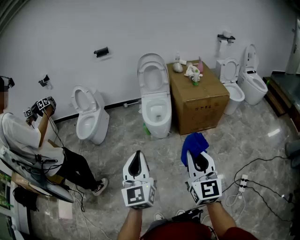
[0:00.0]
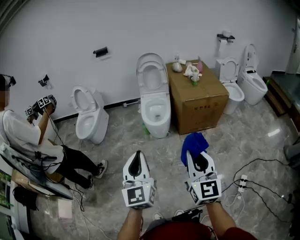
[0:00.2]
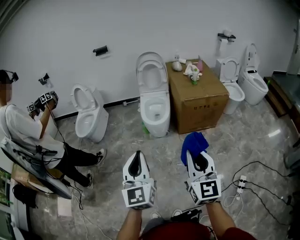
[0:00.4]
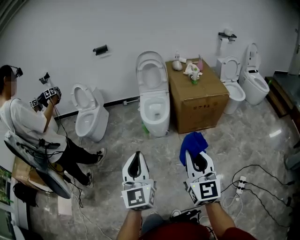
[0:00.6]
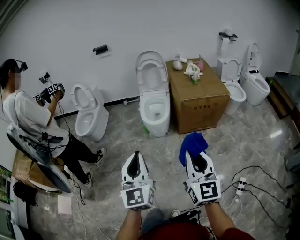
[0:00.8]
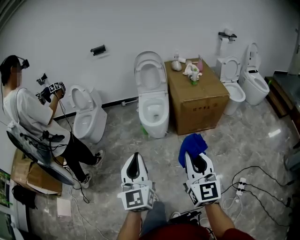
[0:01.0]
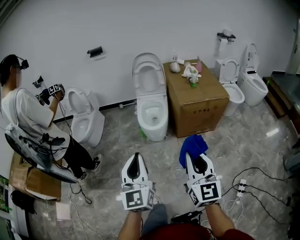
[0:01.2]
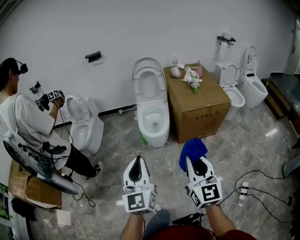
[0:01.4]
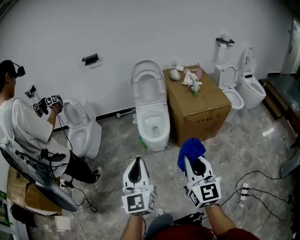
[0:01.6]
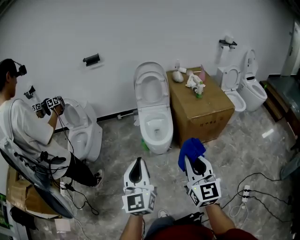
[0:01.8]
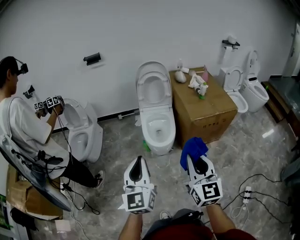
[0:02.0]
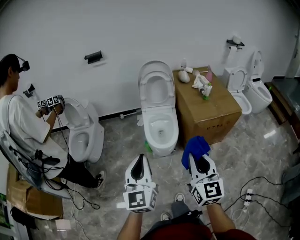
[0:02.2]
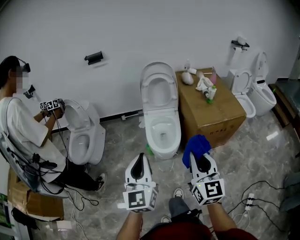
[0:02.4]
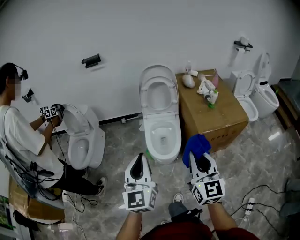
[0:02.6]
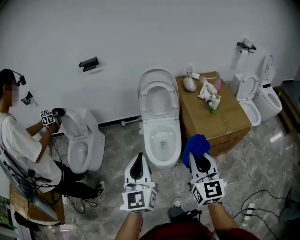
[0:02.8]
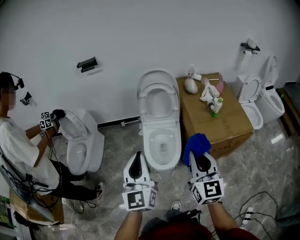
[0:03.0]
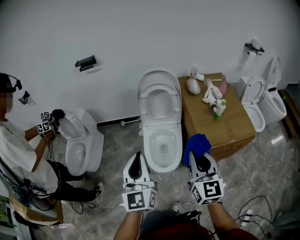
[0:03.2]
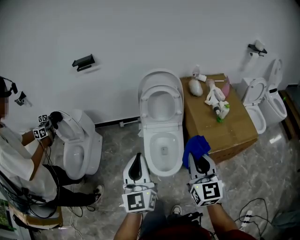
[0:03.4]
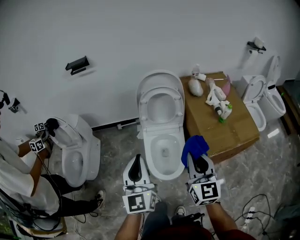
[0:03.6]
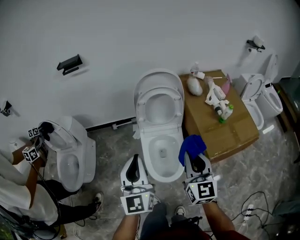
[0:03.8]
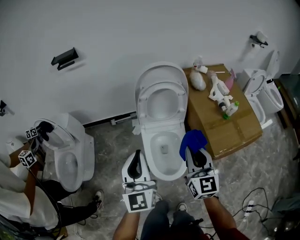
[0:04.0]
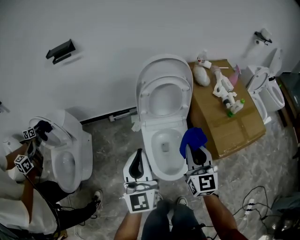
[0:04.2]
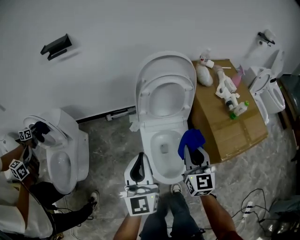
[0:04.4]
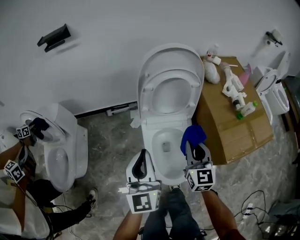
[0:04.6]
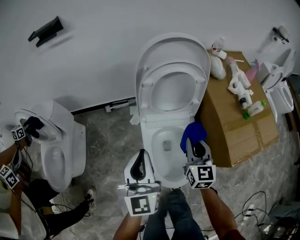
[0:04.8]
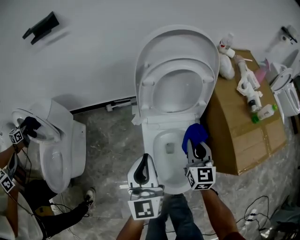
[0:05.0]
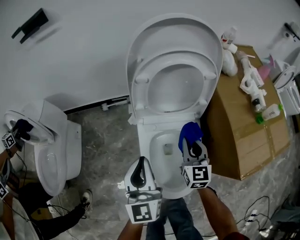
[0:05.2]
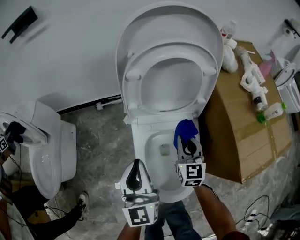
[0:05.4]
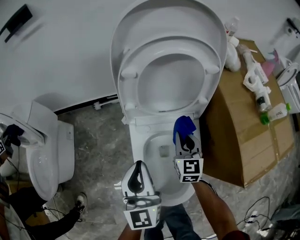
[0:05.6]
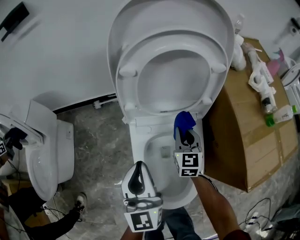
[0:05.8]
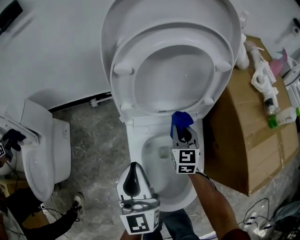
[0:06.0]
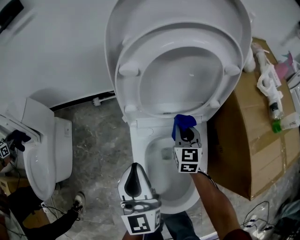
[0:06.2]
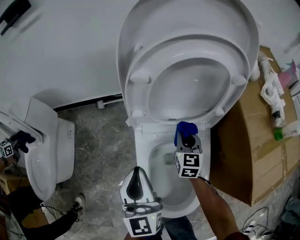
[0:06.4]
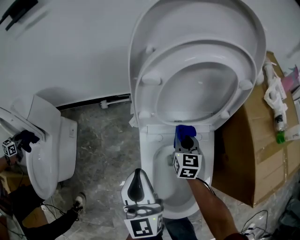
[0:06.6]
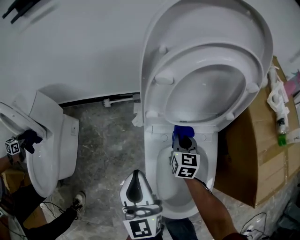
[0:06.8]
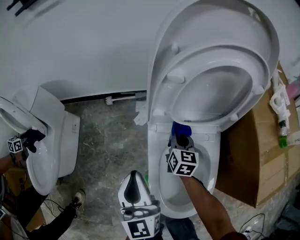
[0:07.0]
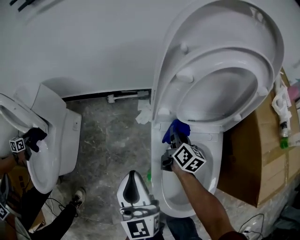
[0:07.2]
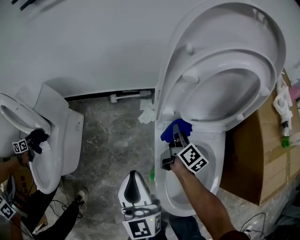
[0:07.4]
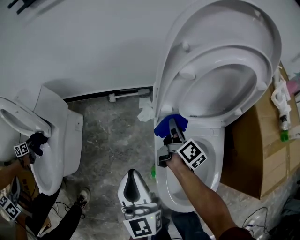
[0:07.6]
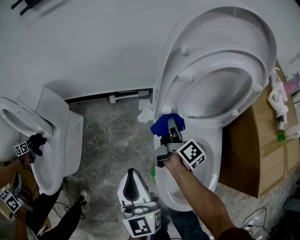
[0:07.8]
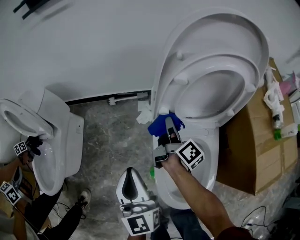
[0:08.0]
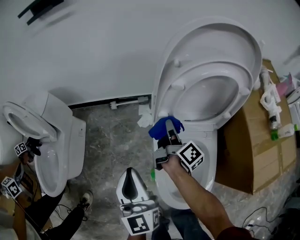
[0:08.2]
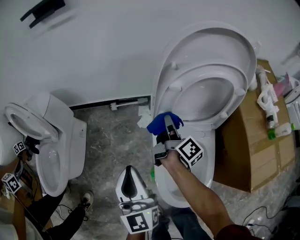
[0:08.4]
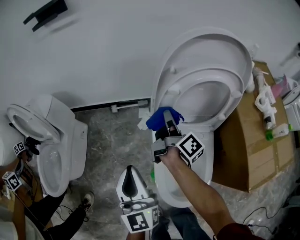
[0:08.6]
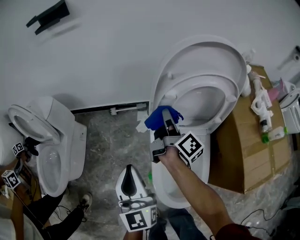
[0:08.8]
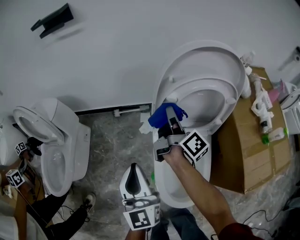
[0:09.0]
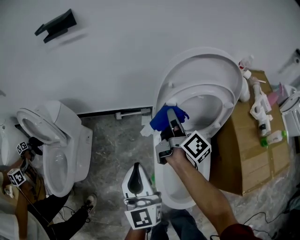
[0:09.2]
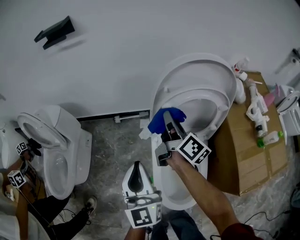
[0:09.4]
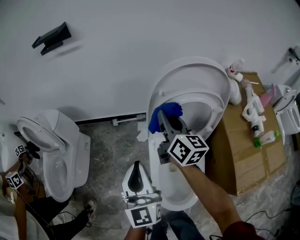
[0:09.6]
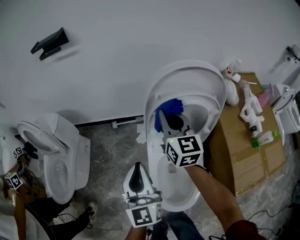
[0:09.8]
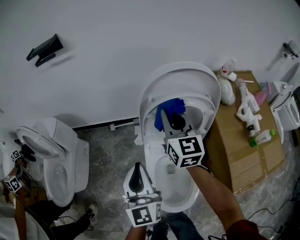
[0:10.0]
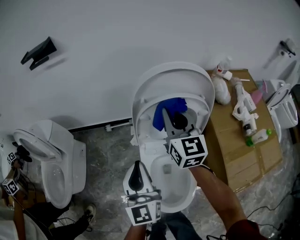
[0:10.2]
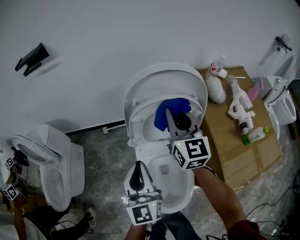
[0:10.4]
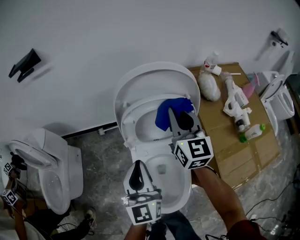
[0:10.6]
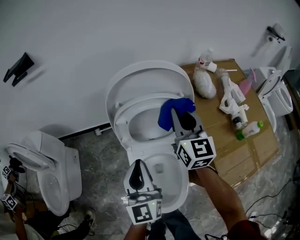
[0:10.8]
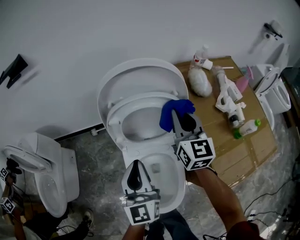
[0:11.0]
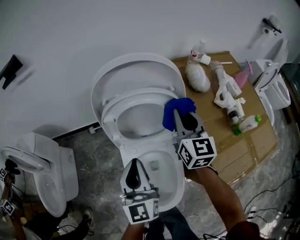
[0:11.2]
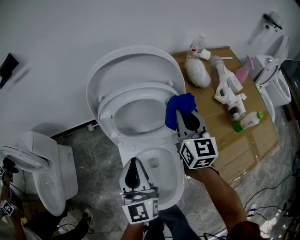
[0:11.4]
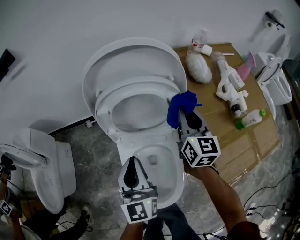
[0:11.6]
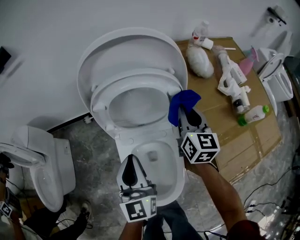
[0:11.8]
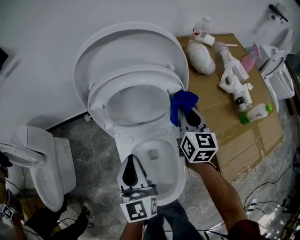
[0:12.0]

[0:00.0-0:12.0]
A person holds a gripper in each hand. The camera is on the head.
0:00.0 to 0:01.6: The grippers both shift forward by roughly 20 cm.
0:01.6 to 0:03.0: The two grippers go roughly 40 cm forward.
0:03.0 to 0:04.4: Both grippers move forward and downward, approximately 40 cm.
0:04.4 to 0:06.0: The two grippers go approximately 40 cm downward and forward.
0:06.0 to 0:07.6: The right gripper travels to the left and forward by roughly 15 cm, and rotates around the line of its fingers by roughly 70 degrees, clockwise from behind. Meanwhile the left gripper goes about 15 cm to the left.
0:07.6 to 0:09.0: The right gripper is displaced upward by roughly 25 cm. Meanwhile the left gripper shifts approximately 15 cm upward.
0:09.0 to 0:10.4: The left gripper shifts some 15 cm to the right. The right gripper shifts about 20 cm upward and to the right, and rotates around the line of its fingers by approximately 70 degrees, counterclockwise from behind.
0:10.4 to 0:12.0: The left gripper heads downward and to the right, covering roughly 15 cm. The right gripper goes about 25 cm downward and to the right, and turns by some 20 degrees.

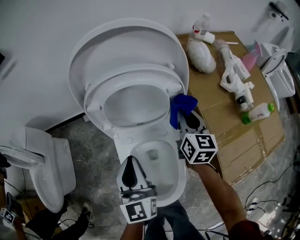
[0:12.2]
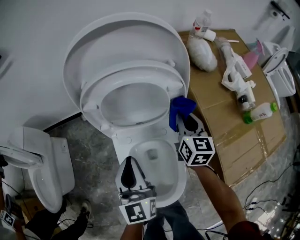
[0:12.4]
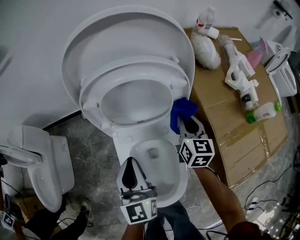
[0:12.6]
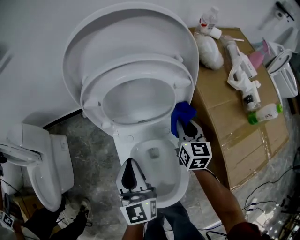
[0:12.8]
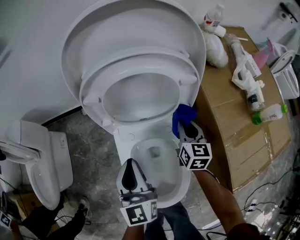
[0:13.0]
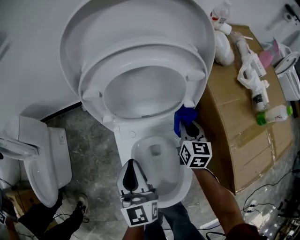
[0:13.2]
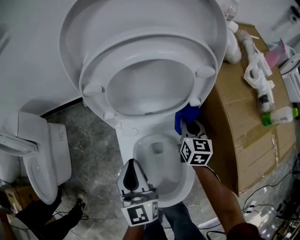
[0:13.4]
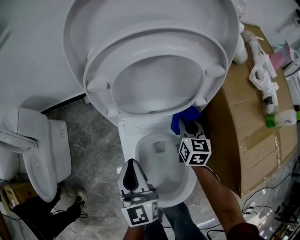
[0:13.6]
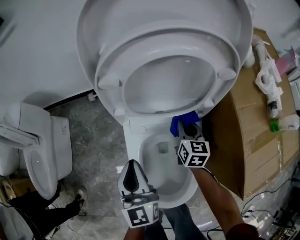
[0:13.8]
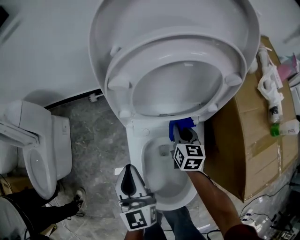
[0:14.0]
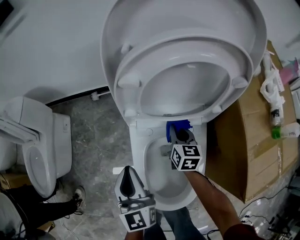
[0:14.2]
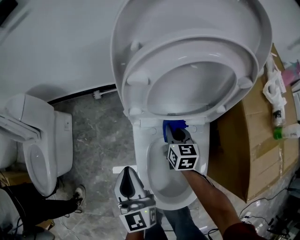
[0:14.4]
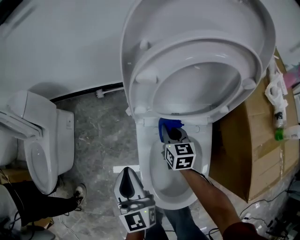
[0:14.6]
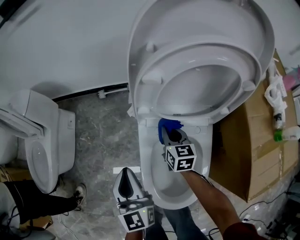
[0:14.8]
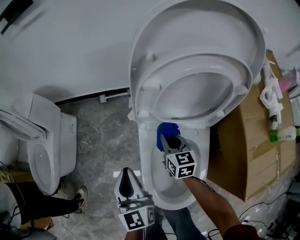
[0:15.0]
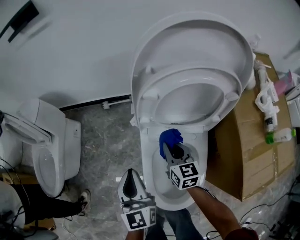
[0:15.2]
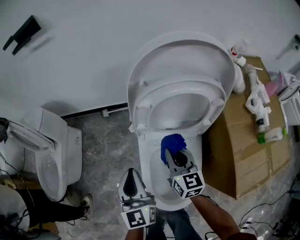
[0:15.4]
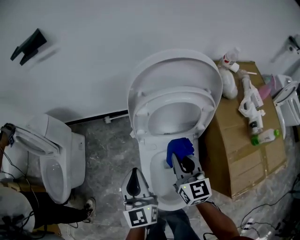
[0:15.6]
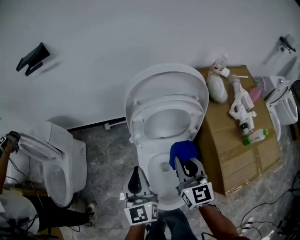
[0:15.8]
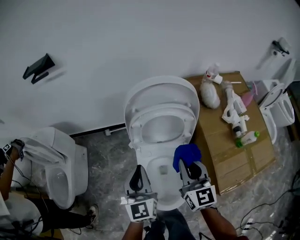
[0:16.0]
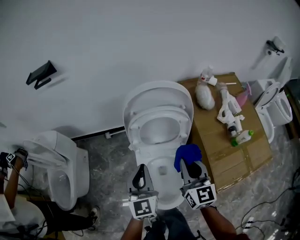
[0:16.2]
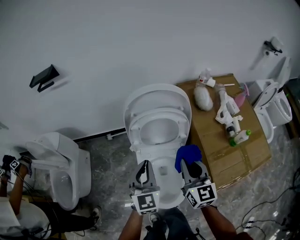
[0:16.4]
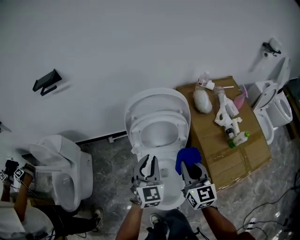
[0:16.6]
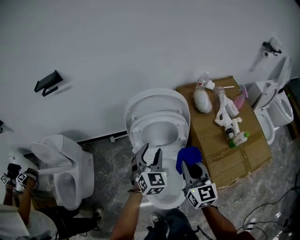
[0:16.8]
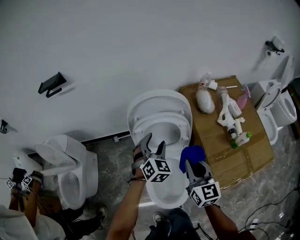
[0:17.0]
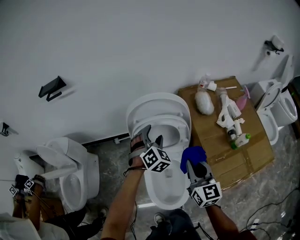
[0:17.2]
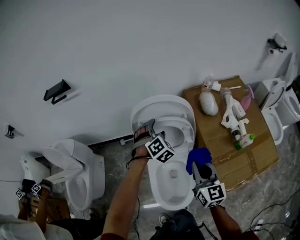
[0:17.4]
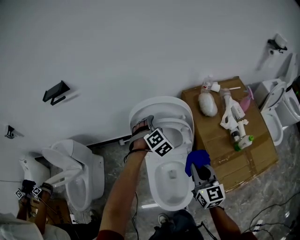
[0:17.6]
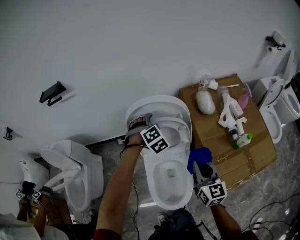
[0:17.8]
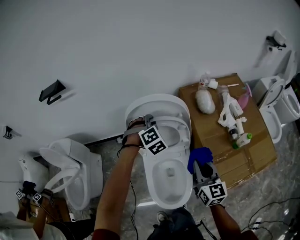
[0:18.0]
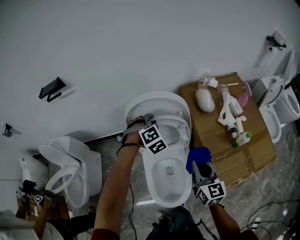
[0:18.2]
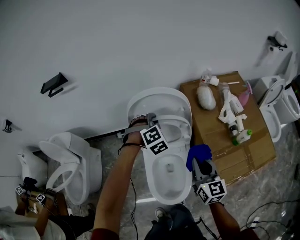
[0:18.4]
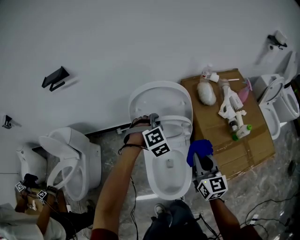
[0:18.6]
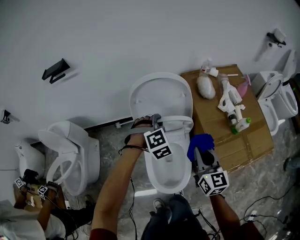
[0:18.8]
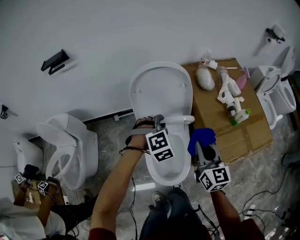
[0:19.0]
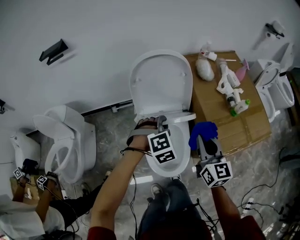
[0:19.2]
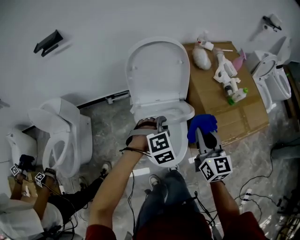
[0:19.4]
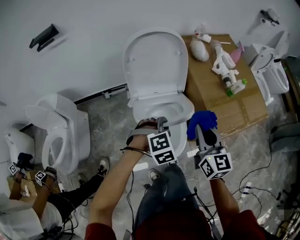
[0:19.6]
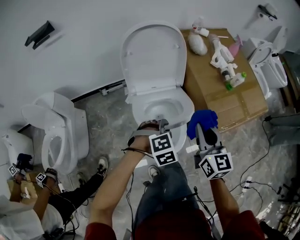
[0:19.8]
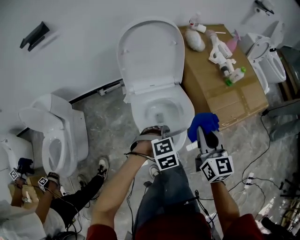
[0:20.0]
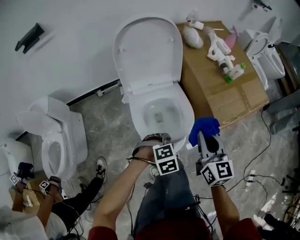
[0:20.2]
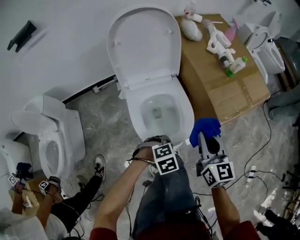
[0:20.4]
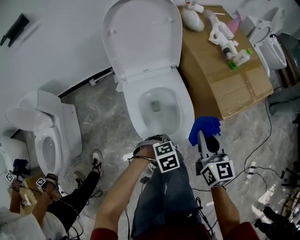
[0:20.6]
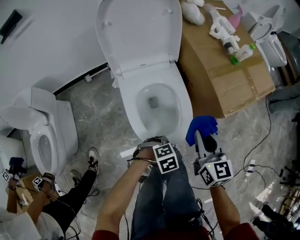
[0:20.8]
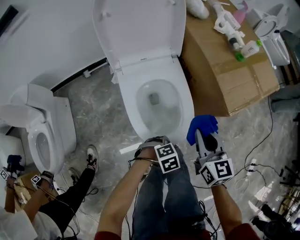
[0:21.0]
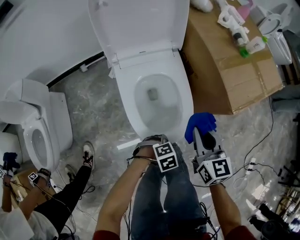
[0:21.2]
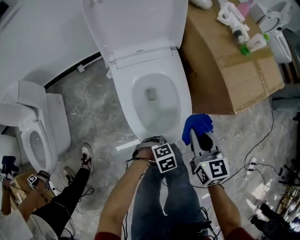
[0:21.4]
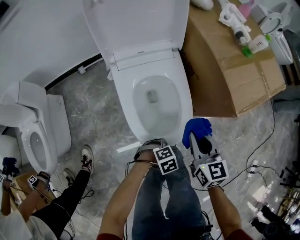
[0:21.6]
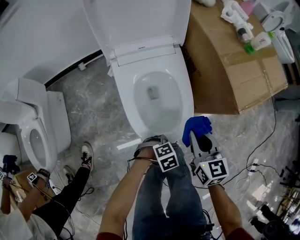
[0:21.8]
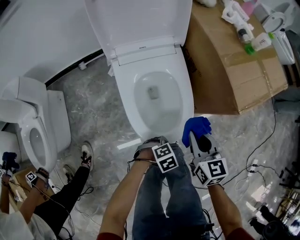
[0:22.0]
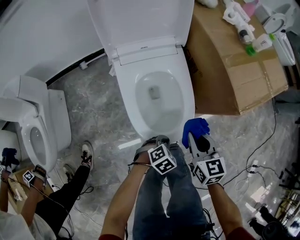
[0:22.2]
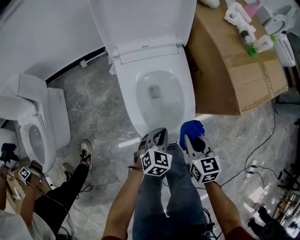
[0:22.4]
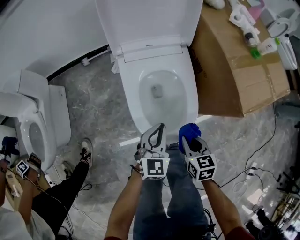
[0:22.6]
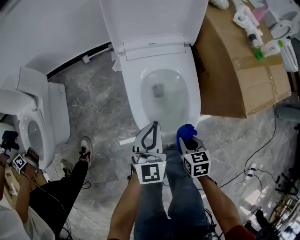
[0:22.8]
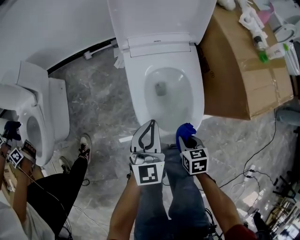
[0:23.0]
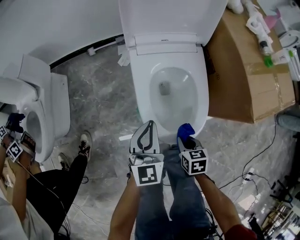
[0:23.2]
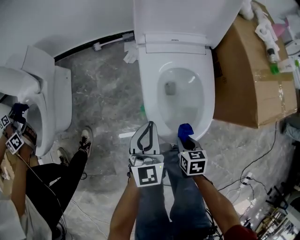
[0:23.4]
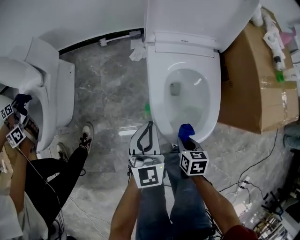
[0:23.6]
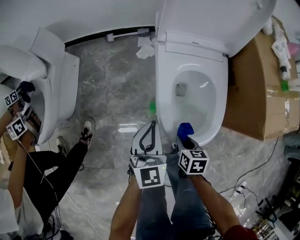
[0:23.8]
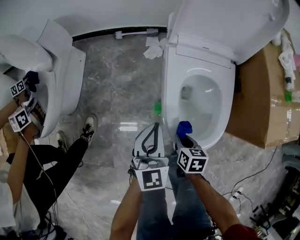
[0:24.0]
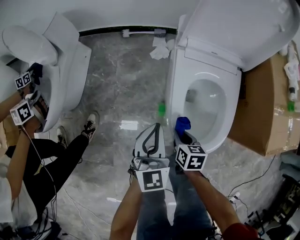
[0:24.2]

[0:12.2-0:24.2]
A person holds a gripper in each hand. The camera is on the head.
0:12.2 to 0:13.8: The left gripper heads downward and to the left, covering some 15 cm; the right gripper shifts roughly 20 cm downward and to the left.
0:13.8 to 0:15.2: The right gripper travels to the left and upward by about 20 cm, while the left gripper heads to the left and upward, covering roughly 10 cm.
0:15.2 to 0:16.6: The right gripper heads upward, covering roughly 35 cm, and rotates about 20 degrees. Meanwhile the left gripper goes approximately 25 cm upward and to the right, and changes its angle by roughly 40 degrees.
0:16.6 to 0:18.2: The right gripper moves to the right, approximately 5 cm. The left gripper goes some 20 cm forward, rotates around the line of its fingers by about 50 degrees, clockwise from behind, and opens, then closes again.
0:18.2 to 0:19.8: The right gripper moves backward, approximately 15 cm, while the left gripper is displaced backward by approximately 35 cm, and changes its angle by about 30 degrees.
0:19.8 to 0:21.2: Both grippers move downward, about 30 cm. The left gripper swivels some 30 degrees.
0:21.2 to 0:22.6: The left gripper moves some 15 cm, and angles its fingers upward, by about 50 degrees, while the right gripper heads downward, covering about 15 cm, and turns by roughly 20 degrees.
0:22.6 to 0:24.2: The left gripper goes some 20 cm to the left, and rotates some 30 degrees. Meanwhile the right gripper travels to the left, forward and downward by roughly 20 cm.
